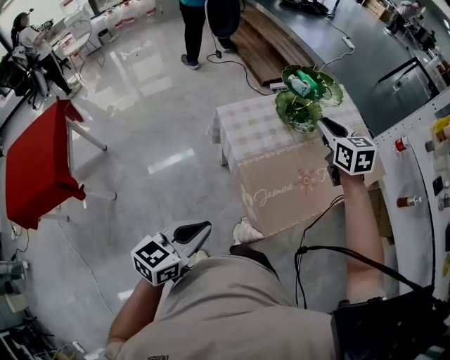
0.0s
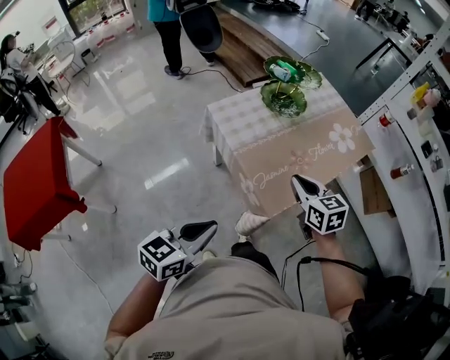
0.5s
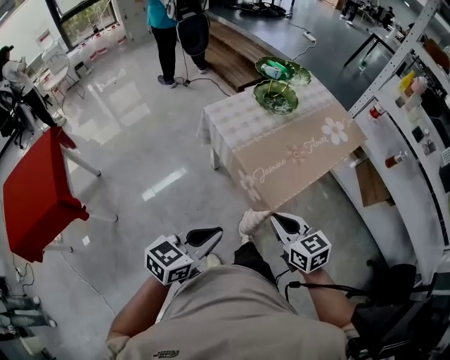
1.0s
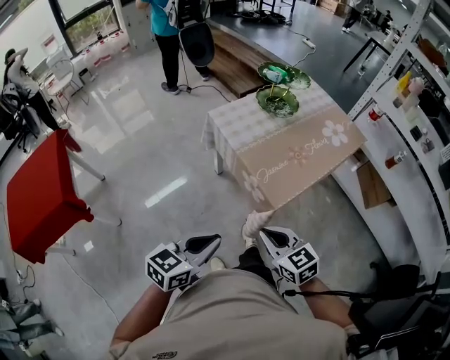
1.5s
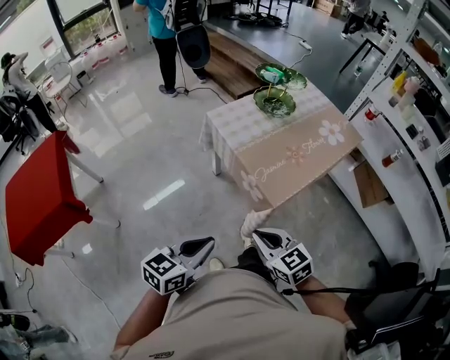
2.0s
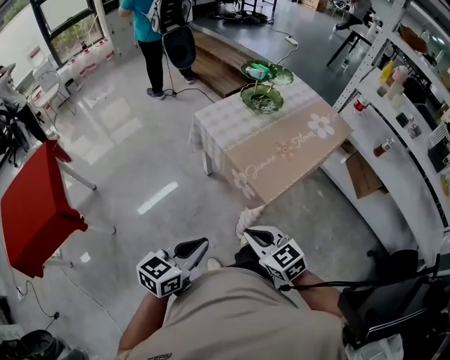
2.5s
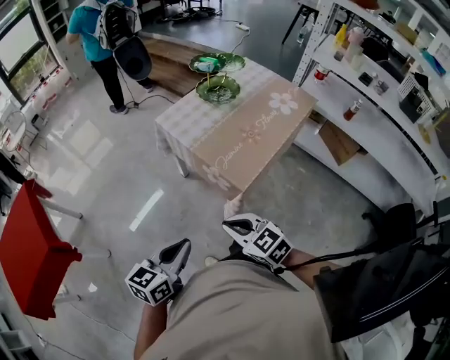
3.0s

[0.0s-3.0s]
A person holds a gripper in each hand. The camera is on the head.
0.0s to 1.5s: The left gripper goes some 15 cm backward; the right gripper moves backward, roughly 50 cm.
1.5s to 3.0s: The grippers stay close to where they were, moving slightly.

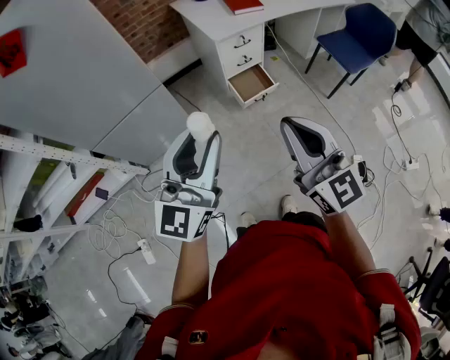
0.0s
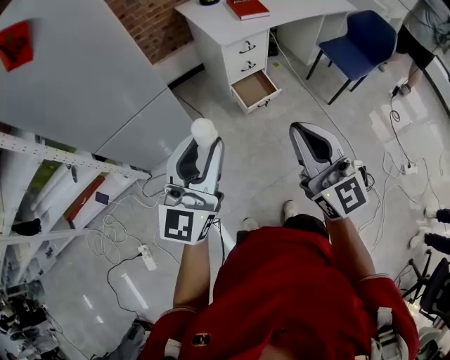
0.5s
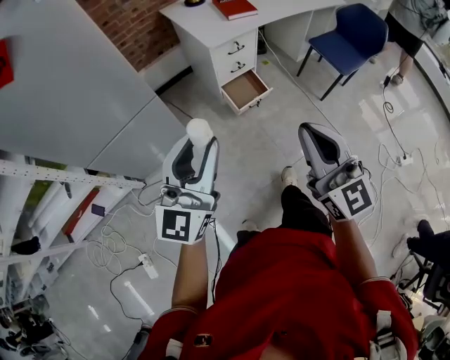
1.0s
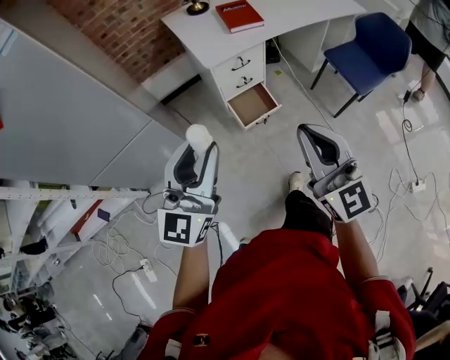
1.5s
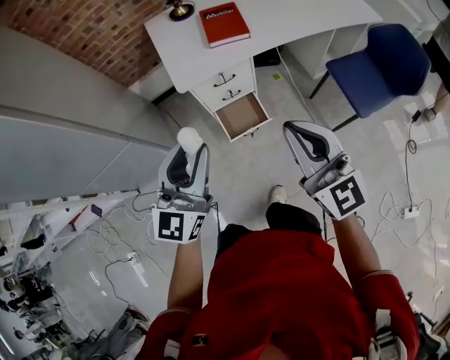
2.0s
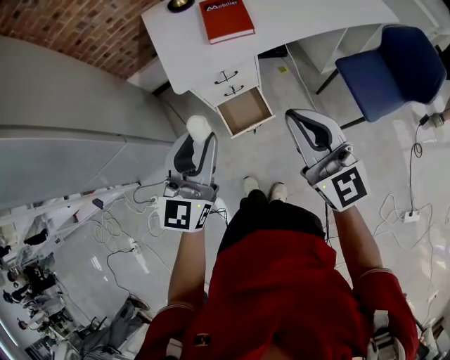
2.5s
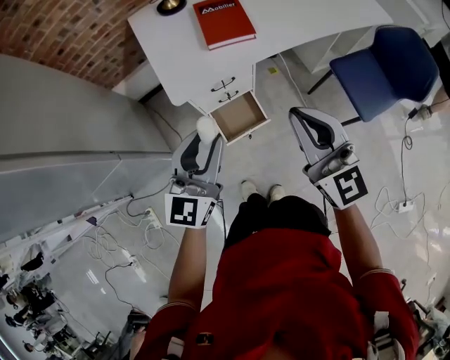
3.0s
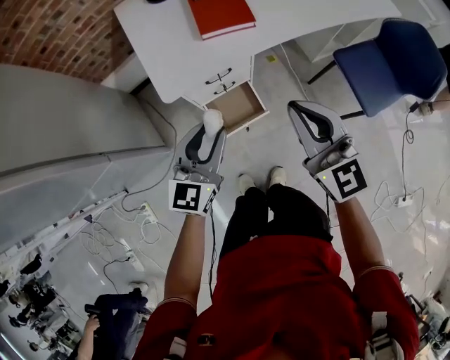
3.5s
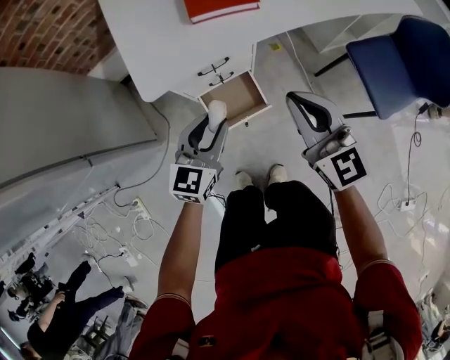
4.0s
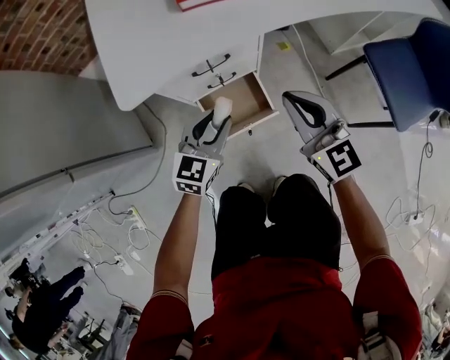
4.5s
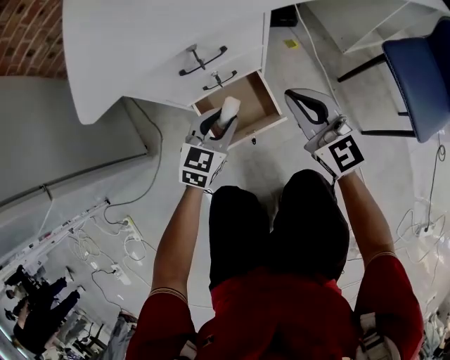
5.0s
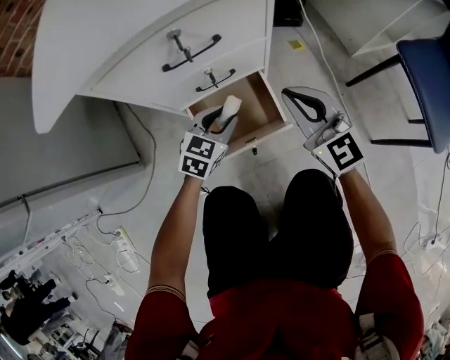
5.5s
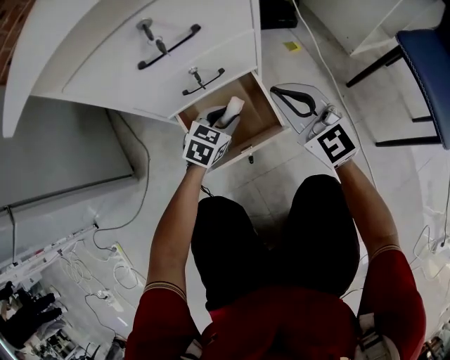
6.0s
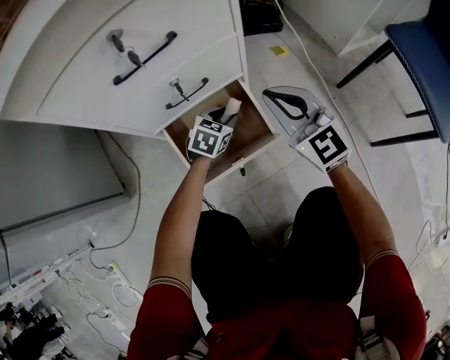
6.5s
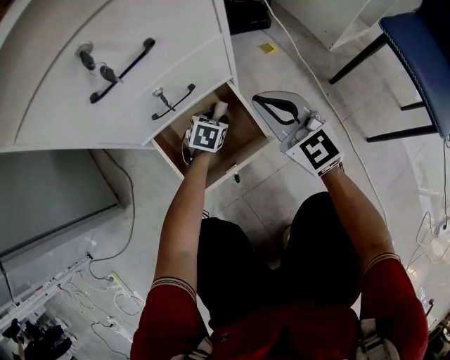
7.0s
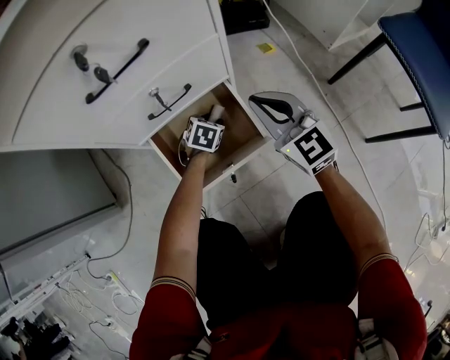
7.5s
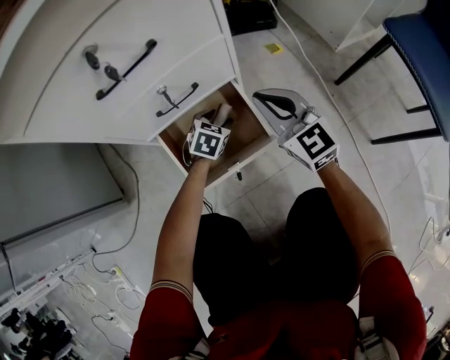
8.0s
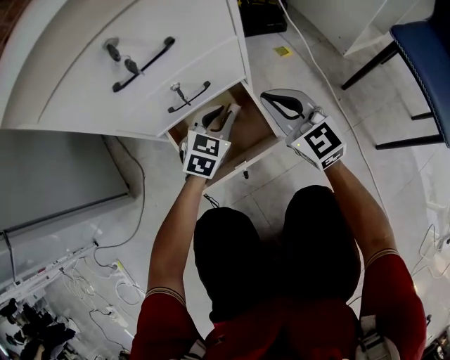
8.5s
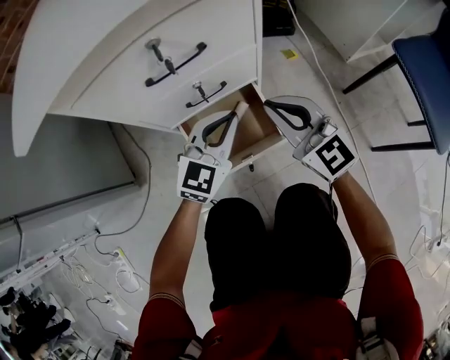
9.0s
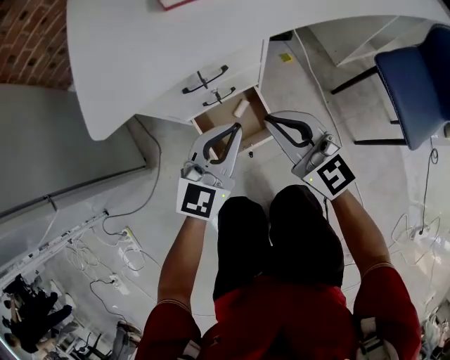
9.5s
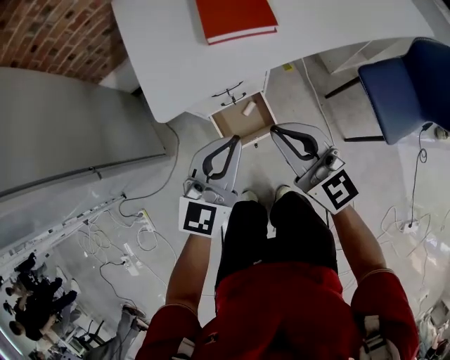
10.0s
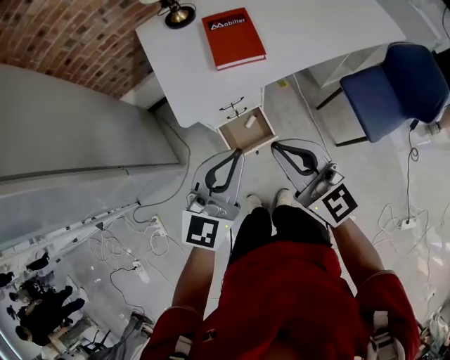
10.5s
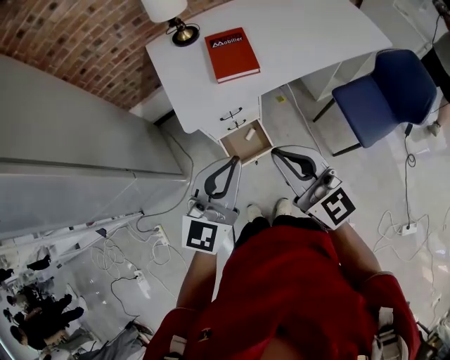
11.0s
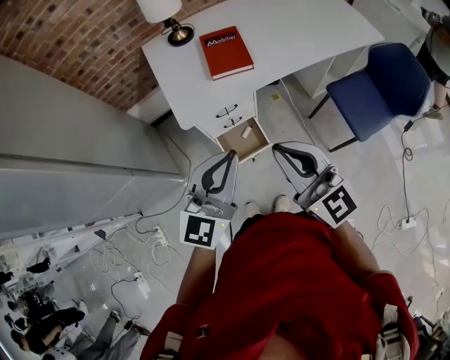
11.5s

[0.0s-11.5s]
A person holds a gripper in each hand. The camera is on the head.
0.0s to 2.0s: The two grippers travel together, forward and to the right, roughly 40 cm.
2.0s to 4.0s: The right gripper moves forward and downward, roughly 30 cm, while the left gripper travels downward and forward by about 40 cm, and changes its angle by some 20 degrees.
4.0s to 6.0s: Both grippers travel together downward, about 50 cm. The left gripper rotates roughly 30 degrees.
6.0s to 7.5s: The left gripper shifts some 15 cm downward and forward; the right gripper is displaced downward by roughly 5 cm.
7.5s to 9.5s: The right gripper travels upward by roughly 25 cm; the left gripper travels upward by some 50 cm, points its fingers some 50 degrees further upward, and closes.
9.5s to 11.5s: The right gripper shifts about 50 cm upward and backward, while the left gripper heads upward, covering about 40 cm.

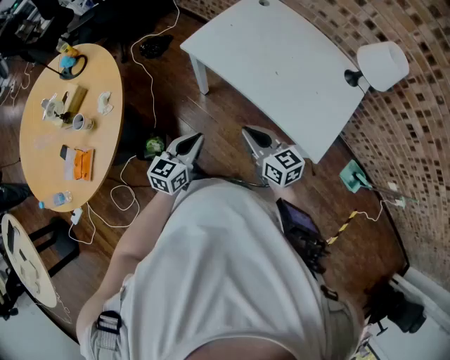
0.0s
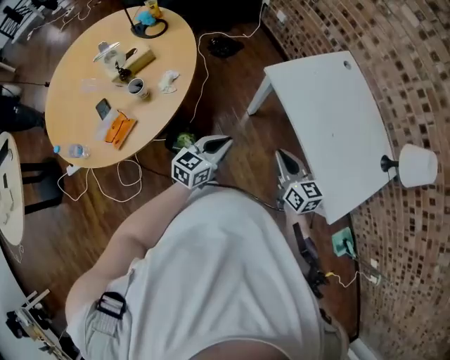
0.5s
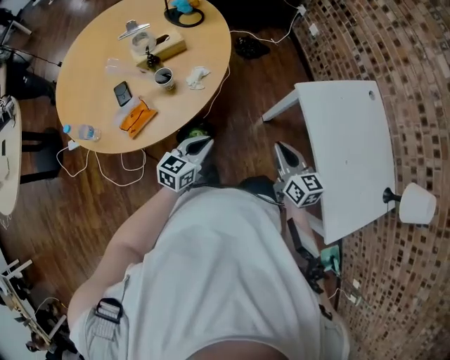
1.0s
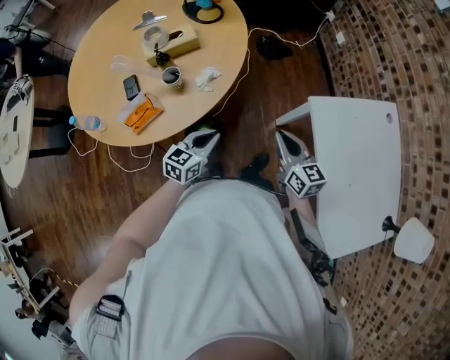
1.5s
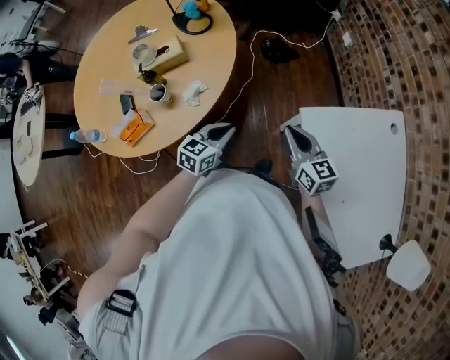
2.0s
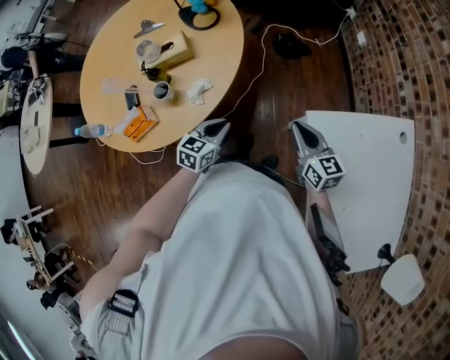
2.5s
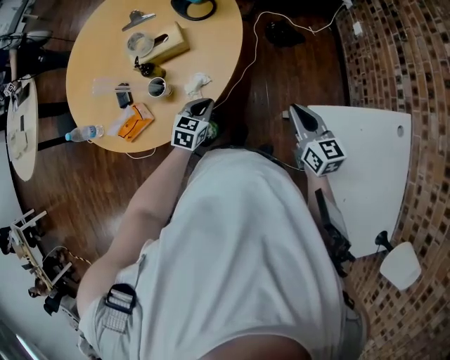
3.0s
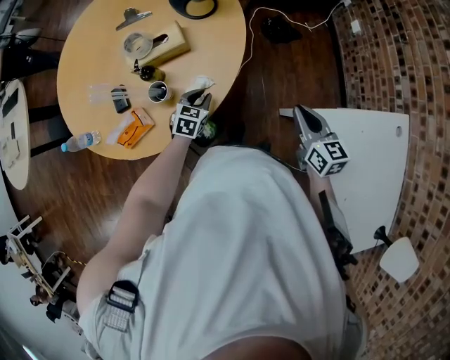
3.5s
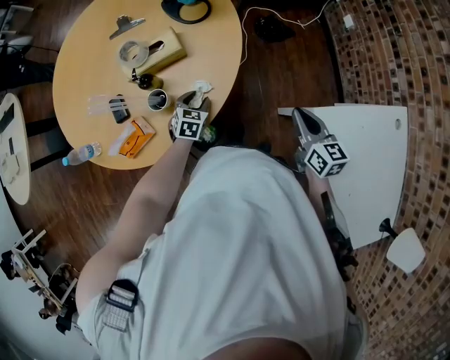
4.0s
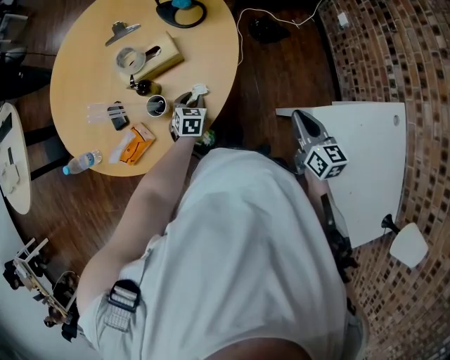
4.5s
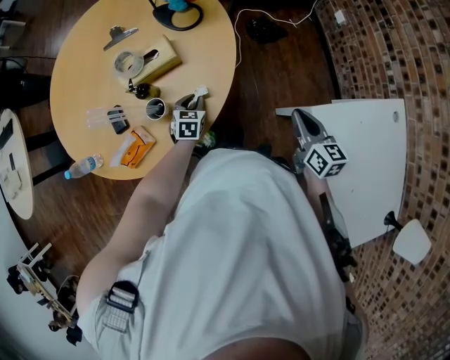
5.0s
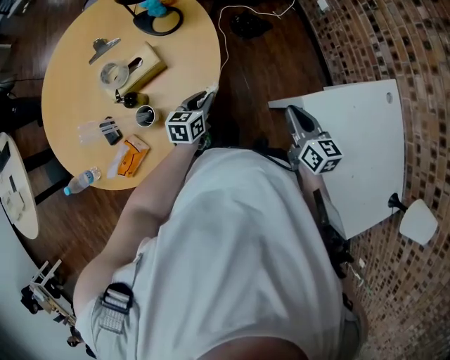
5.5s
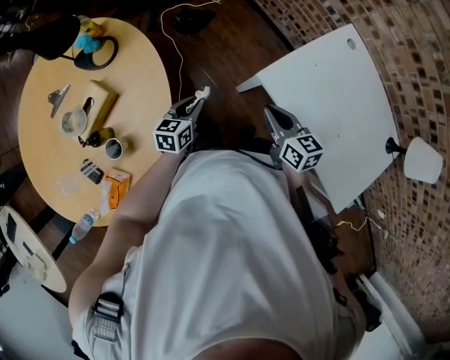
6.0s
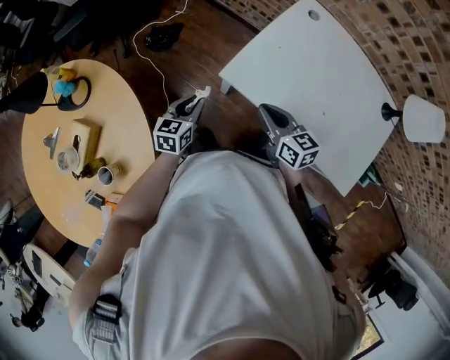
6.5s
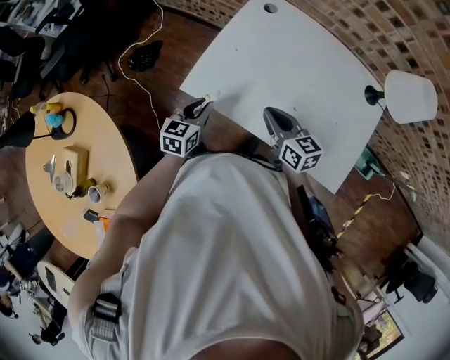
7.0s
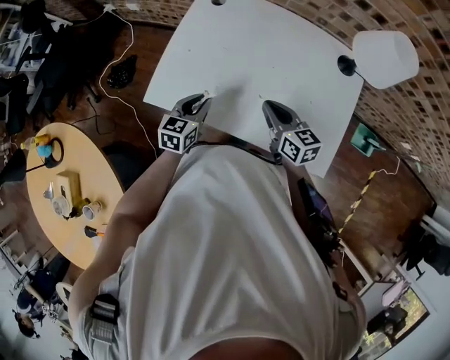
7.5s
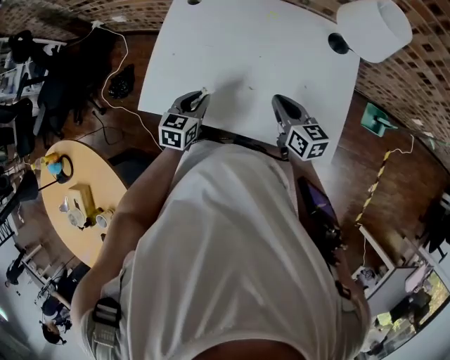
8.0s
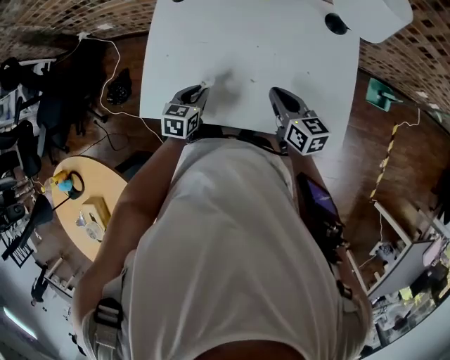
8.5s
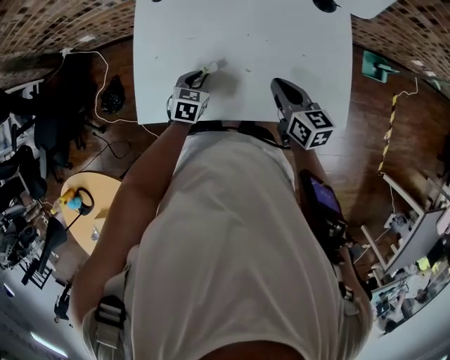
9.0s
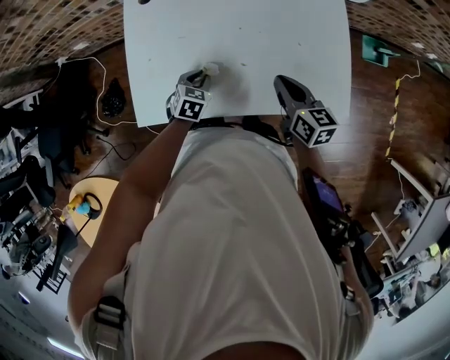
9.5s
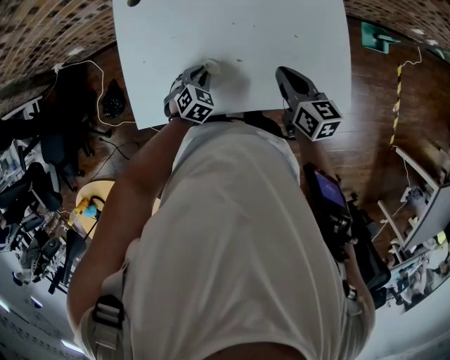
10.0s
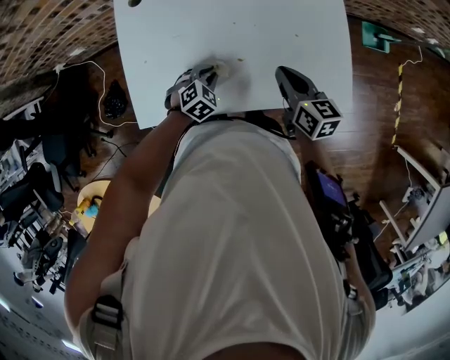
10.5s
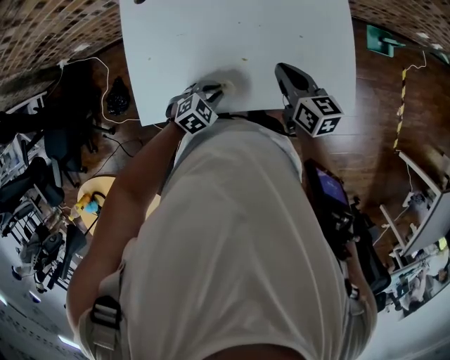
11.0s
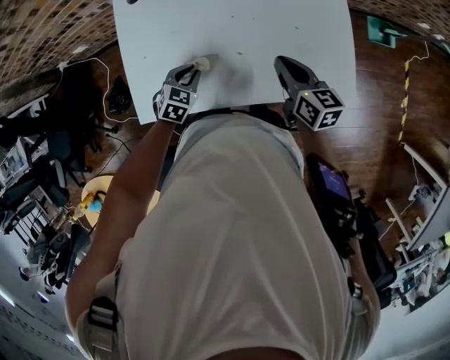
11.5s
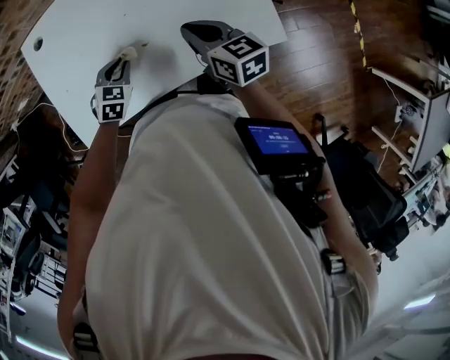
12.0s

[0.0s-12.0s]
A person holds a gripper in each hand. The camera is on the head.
0.0s to 2.0s: The right gripper ends up some 35 cm from where it was, and swivels about 30 degrees; the left gripper moves some 30 cm, and turns by roughly 30 degrees.
2.0s to 4.0s: The left gripper is displaced to the left, forward and downward by some 30 cm, swivels about 30 degrees, and opens its fingers. The right gripper shifts roughly 10 cm forward.
4.0s to 6.0s: The left gripper ends up roughly 20 cm from where it was, rotates some 40 degrees, and closes; the right gripper shifts by approximately 10 cm, and changes its angle by some 20 degrees.
6.0s to 8.0s: The pair of grippers is taken some 50 cm. The right gripper swivels some 40 degrees; the left gripper rotates roughly 50 degrees.
8.0s to 10.0s: The right gripper turns by about 20 degrees. Meanwhile the left gripper moves downward, approximately 10 cm, and twists some 40 degrees clockwise, seen from behind.
10.0s to 12.0s: The left gripper reaches roughly 10 cm backward, then returns.
